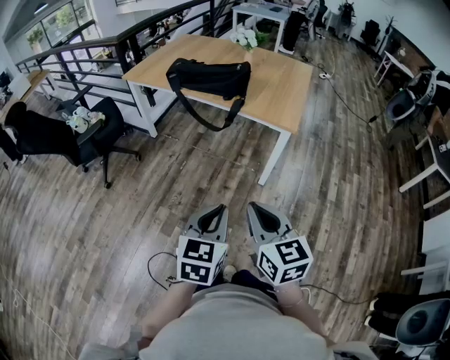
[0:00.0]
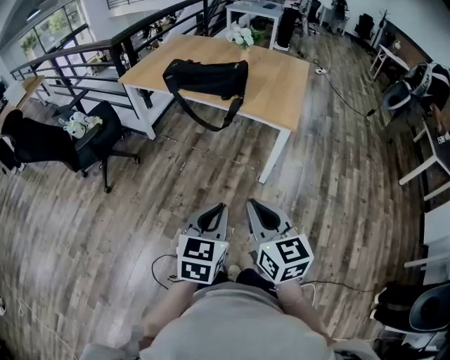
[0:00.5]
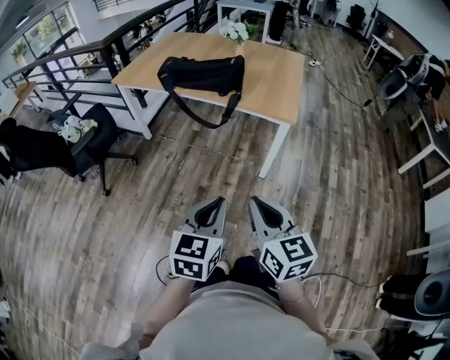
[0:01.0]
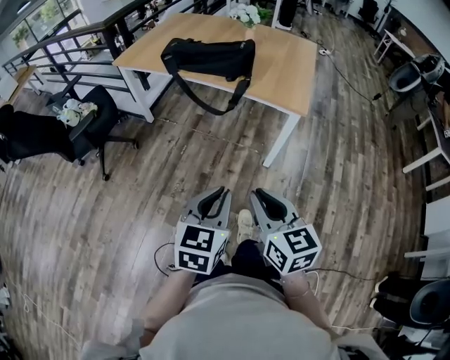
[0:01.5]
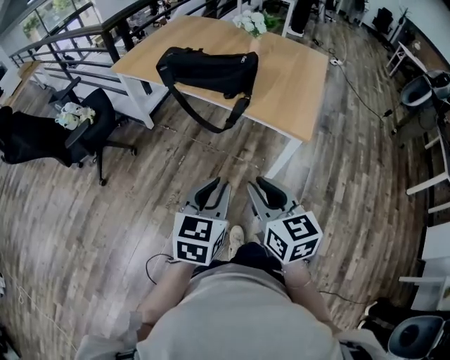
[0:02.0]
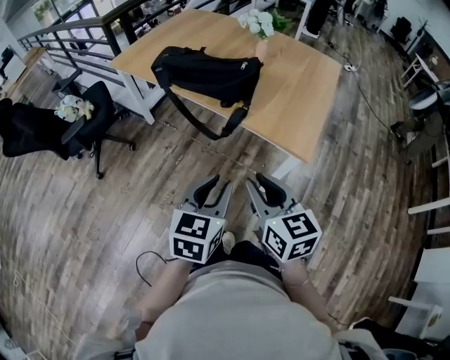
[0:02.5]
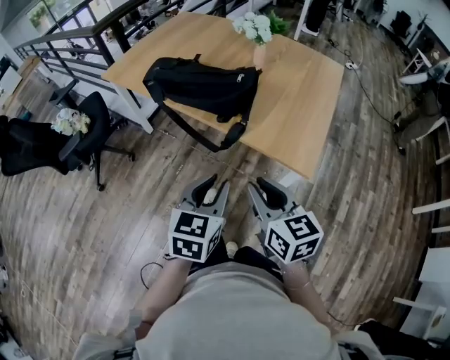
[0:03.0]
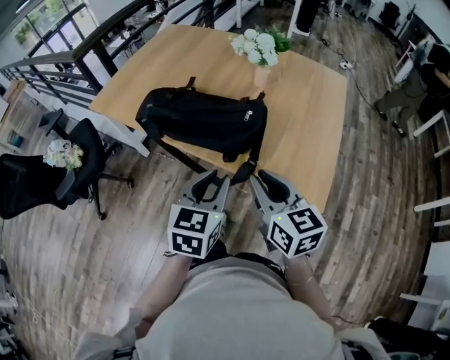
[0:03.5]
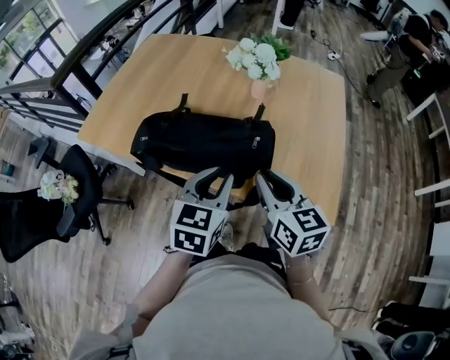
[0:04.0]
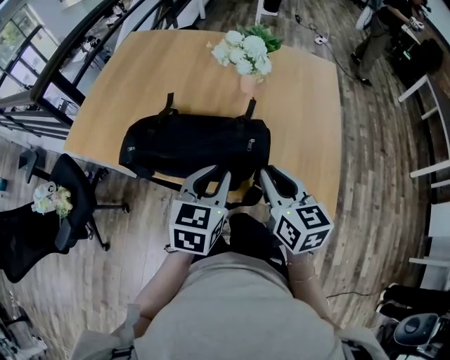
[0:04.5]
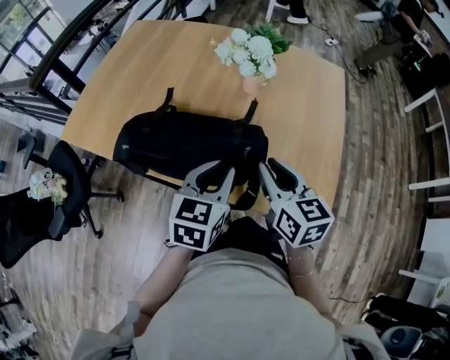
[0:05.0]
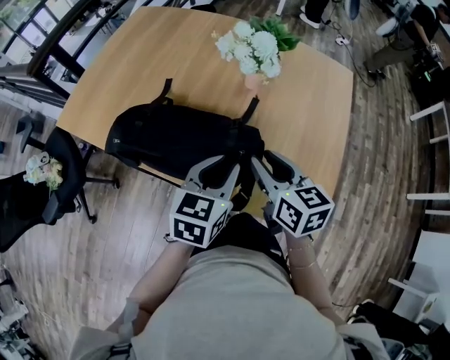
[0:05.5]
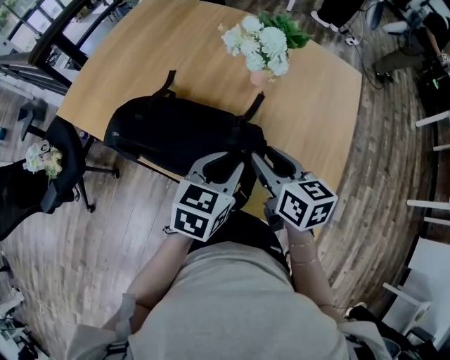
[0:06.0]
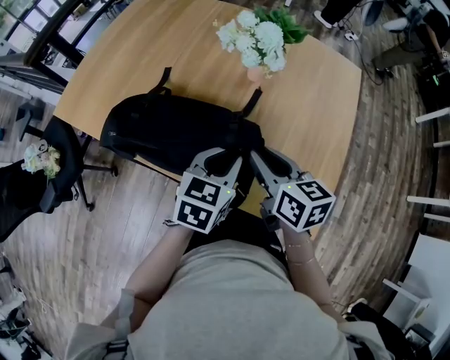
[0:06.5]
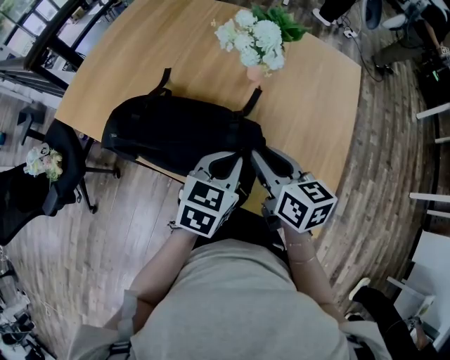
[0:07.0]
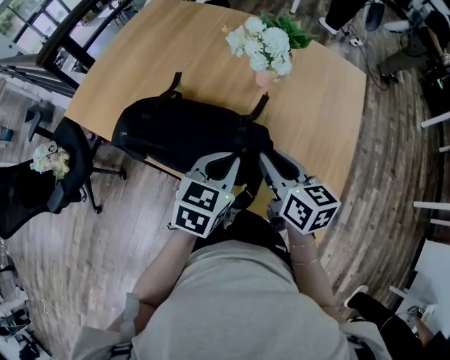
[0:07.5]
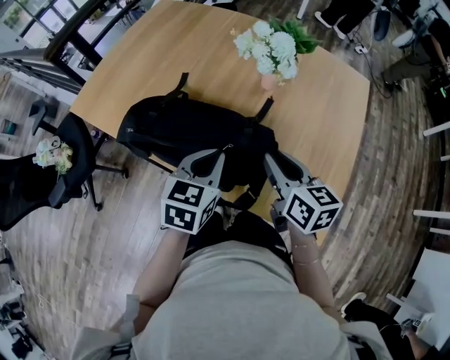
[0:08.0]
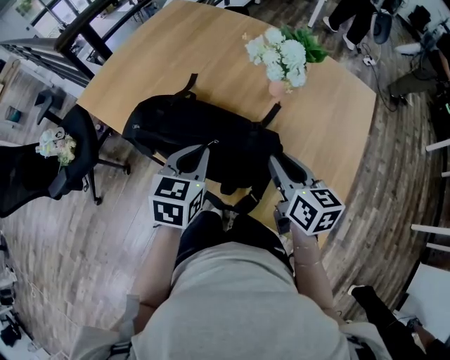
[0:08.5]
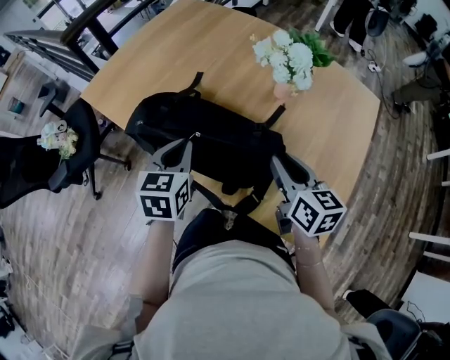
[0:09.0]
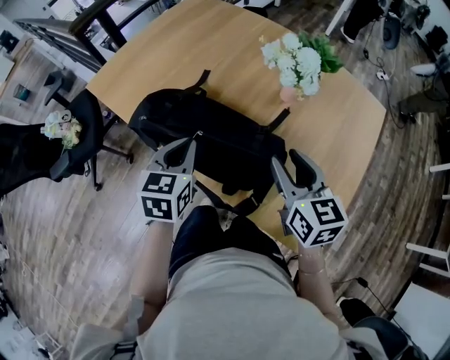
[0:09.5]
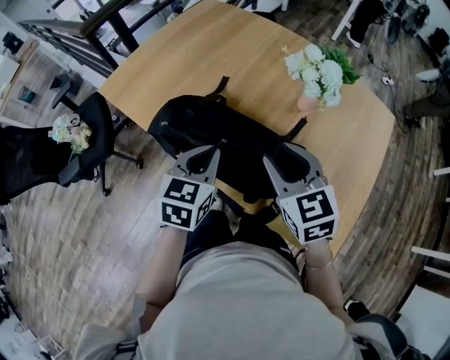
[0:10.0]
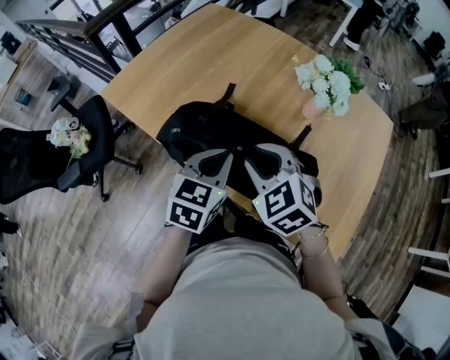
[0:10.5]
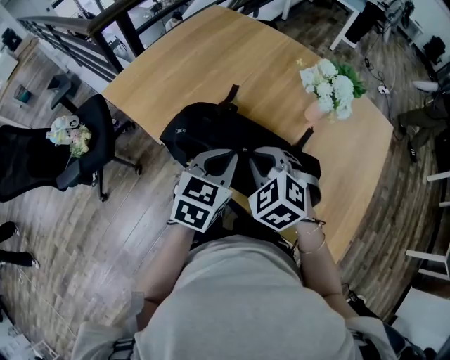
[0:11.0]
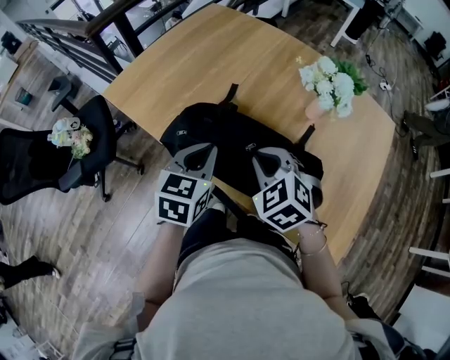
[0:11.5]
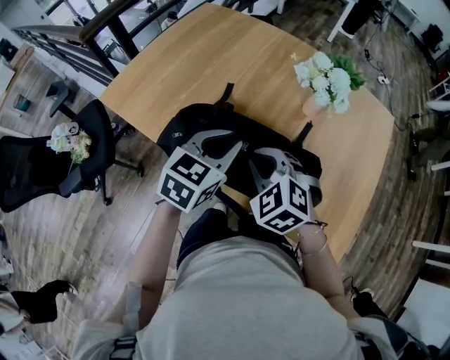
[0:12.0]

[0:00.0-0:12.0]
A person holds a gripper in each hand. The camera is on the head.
0:00.0 to 0:02.0: The grippers both shift forward by roughly 20 cm. The right gripper opens its fingers.
0:02.0 to 0:04.0: The pair of grippers is taken forward, some 40 cm.
0:04.0 to 0:06.0: The left gripper moves forward and to the right, about 10 cm. The right gripper shifts approximately 10 cm forward, and opens up.
0:06.0 to 0:08.0: The left gripper is displaced to the left by approximately 5 cm.
0:08.0 to 0:10.0: The right gripper travels to the left and upward by roughly 10 cm, and changes its angle by some 40 degrees. Meanwhile the left gripper is displaced to the left by approximately 10 cm.
0:10.0 to 0:12.0: The right gripper shifts about 10 cm to the left, rotates some 30 degrees, and closes, while the left gripper turns by about 20 degrees.

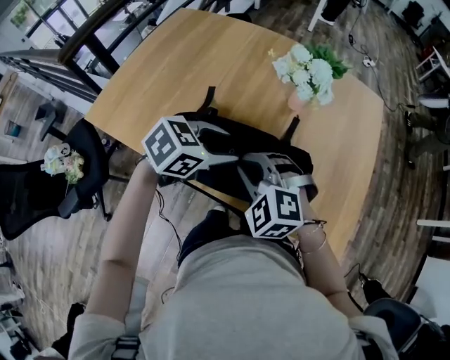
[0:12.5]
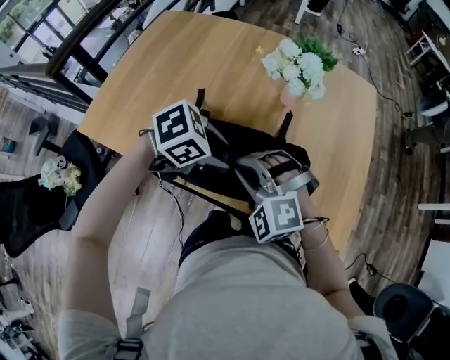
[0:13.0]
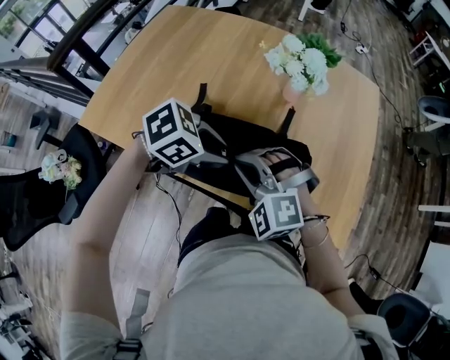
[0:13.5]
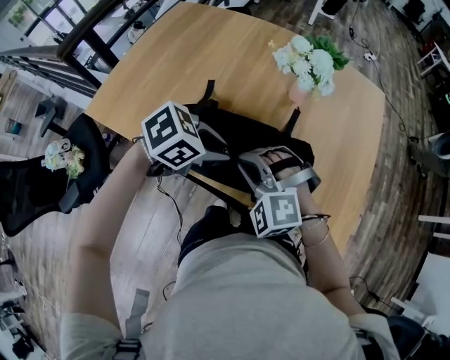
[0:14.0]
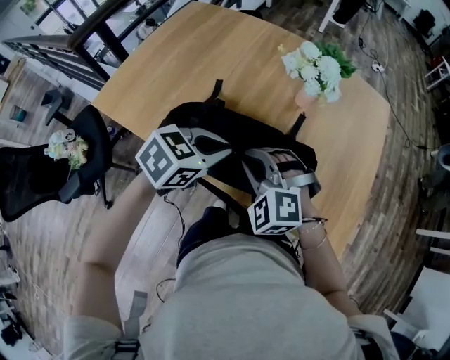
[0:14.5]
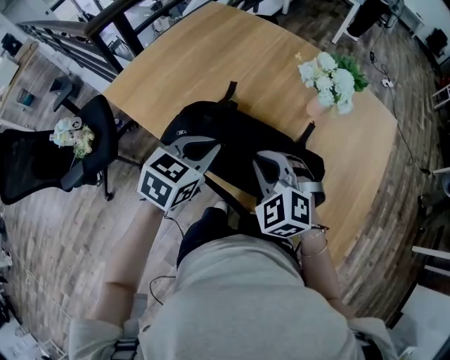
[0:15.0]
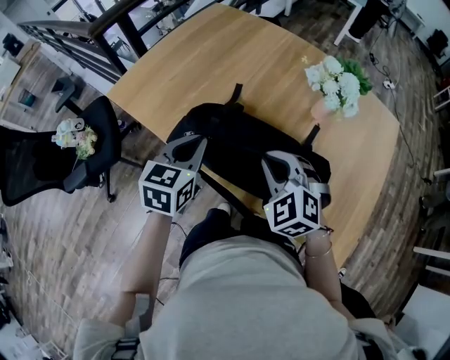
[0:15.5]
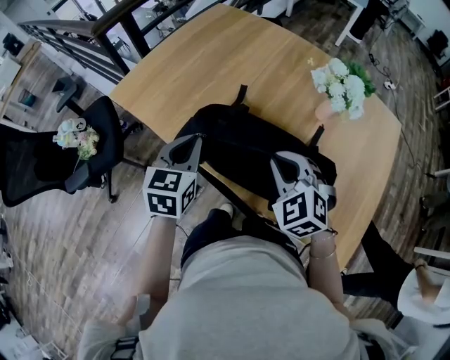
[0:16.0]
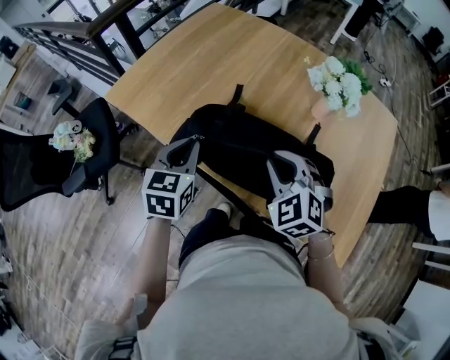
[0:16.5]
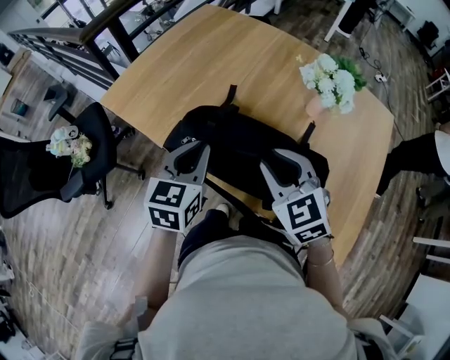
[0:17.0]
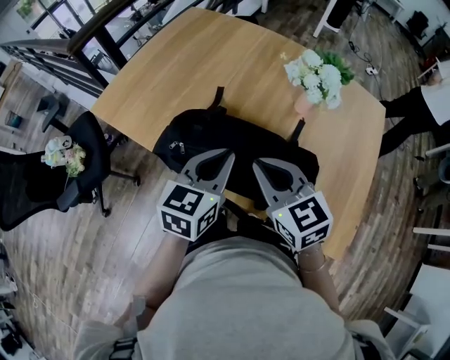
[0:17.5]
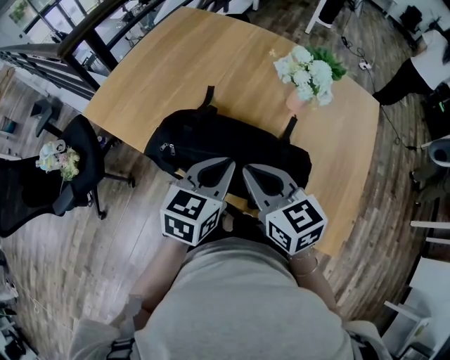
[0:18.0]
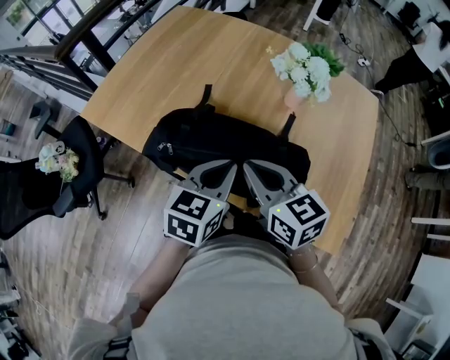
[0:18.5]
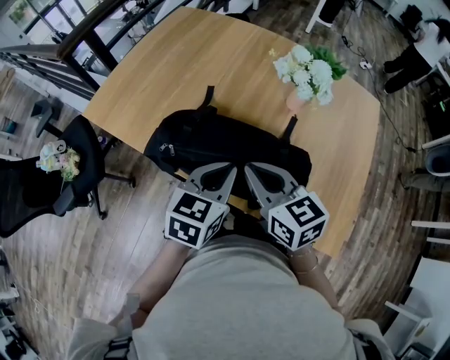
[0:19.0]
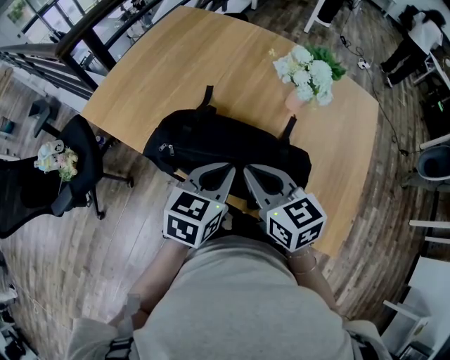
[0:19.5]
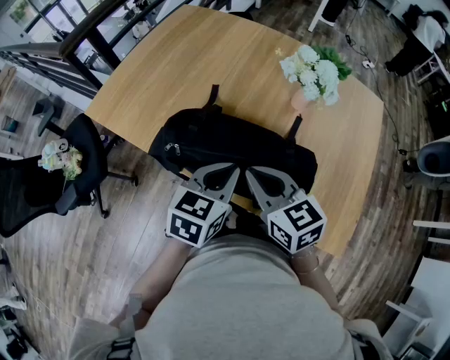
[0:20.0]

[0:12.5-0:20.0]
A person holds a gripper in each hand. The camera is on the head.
0:12.5 to 0:14.5: The left gripper closes up.
0:14.5 to 0:16.5: The left gripper moves about 15 cm, and rotates roughly 50 degrees.
0:16.5 to 0:18.0: The left gripper heads to the right, covering roughly 15 cm, and rotates about 20 degrees. The right gripper ends up about 5 cm from where it was, and twists approximately 40 degrees clockwise, seen from behind.
0:18.0 to 0:20.0: The grippers stay close to where they were, moving slightly.

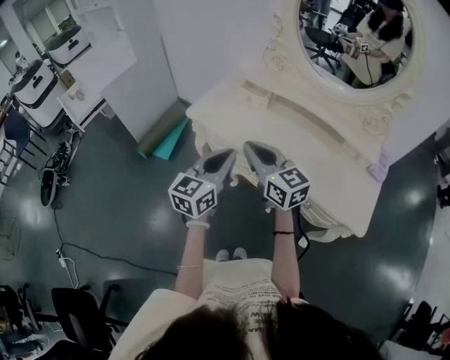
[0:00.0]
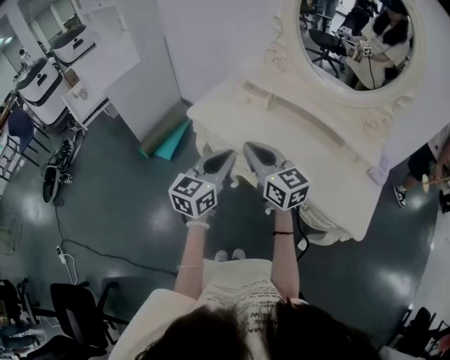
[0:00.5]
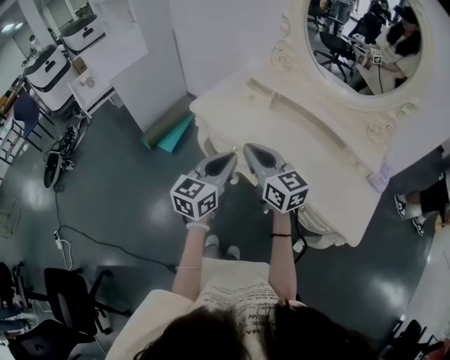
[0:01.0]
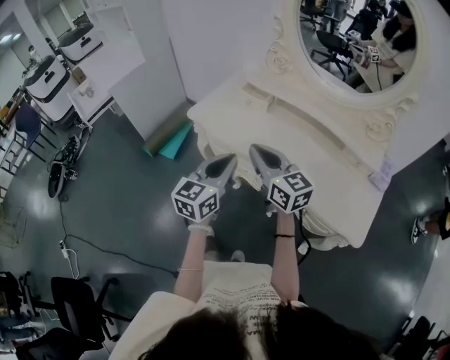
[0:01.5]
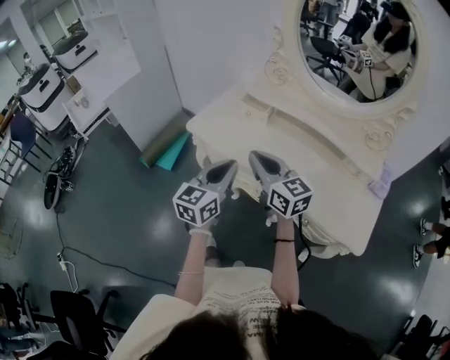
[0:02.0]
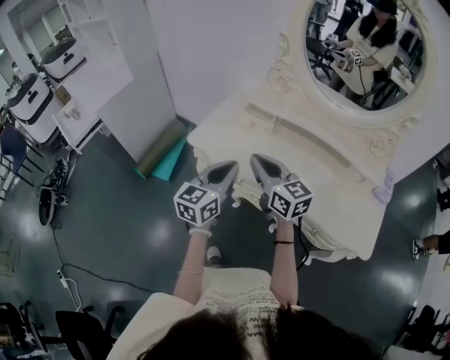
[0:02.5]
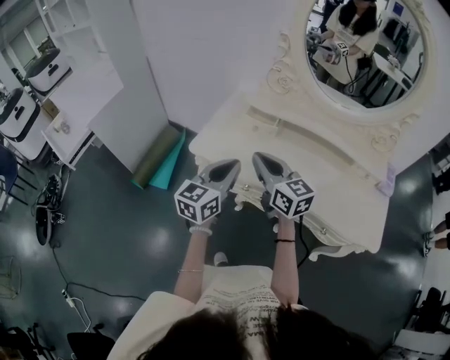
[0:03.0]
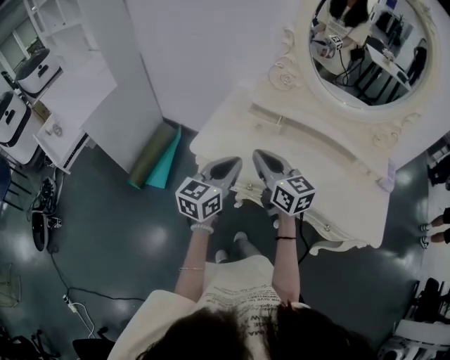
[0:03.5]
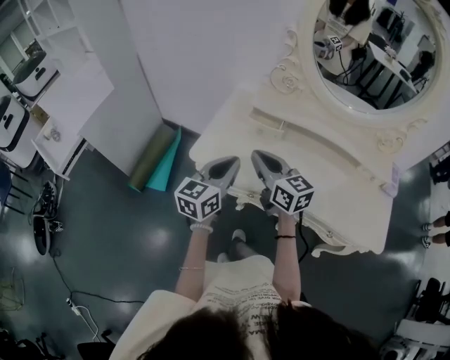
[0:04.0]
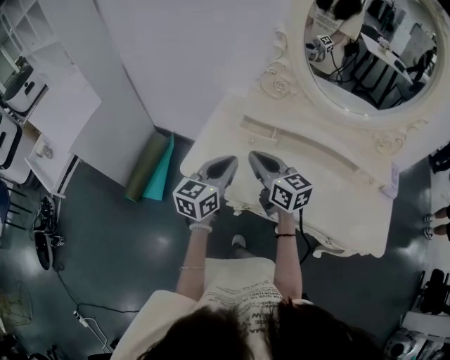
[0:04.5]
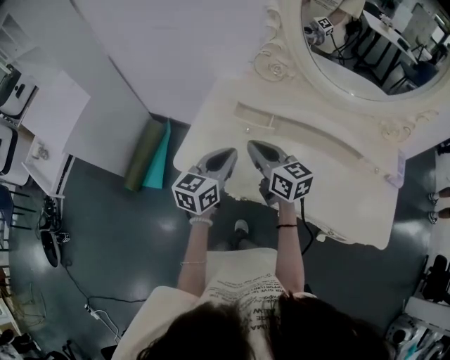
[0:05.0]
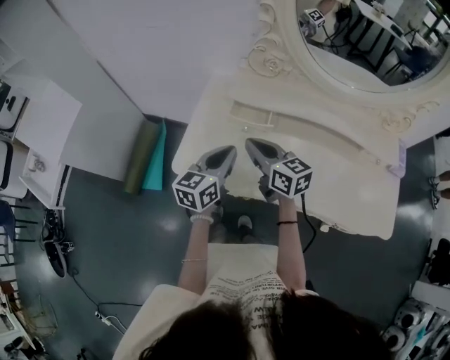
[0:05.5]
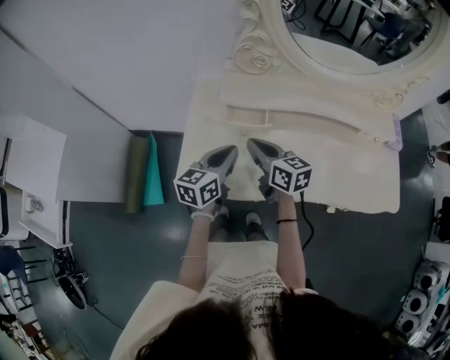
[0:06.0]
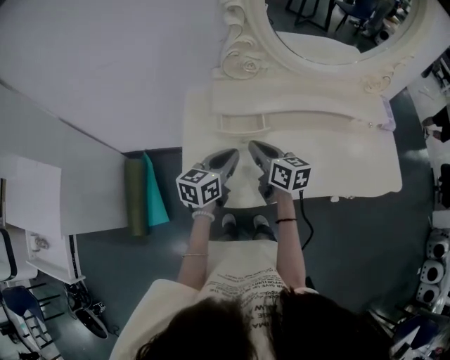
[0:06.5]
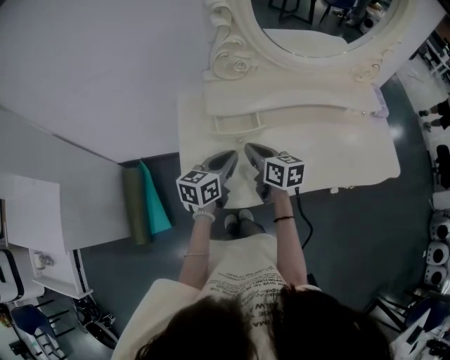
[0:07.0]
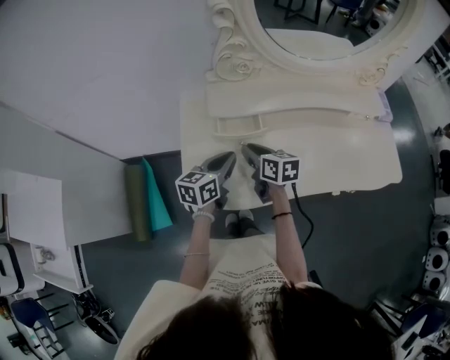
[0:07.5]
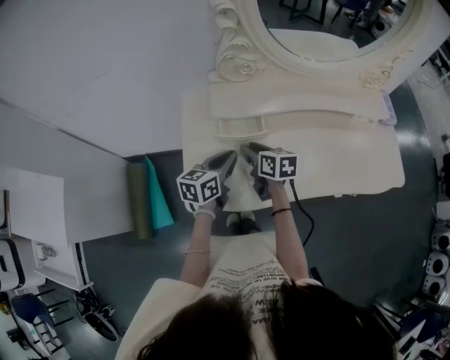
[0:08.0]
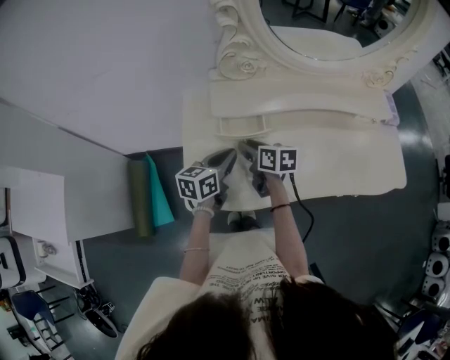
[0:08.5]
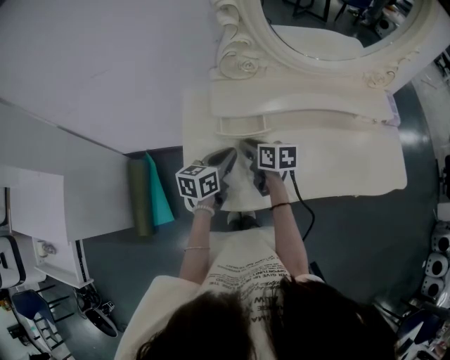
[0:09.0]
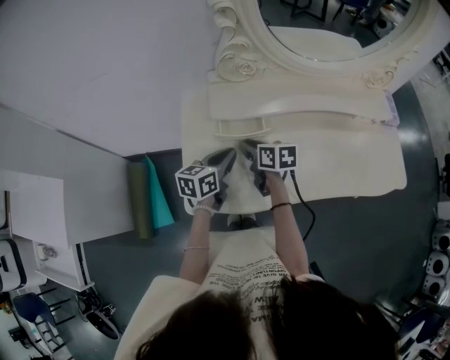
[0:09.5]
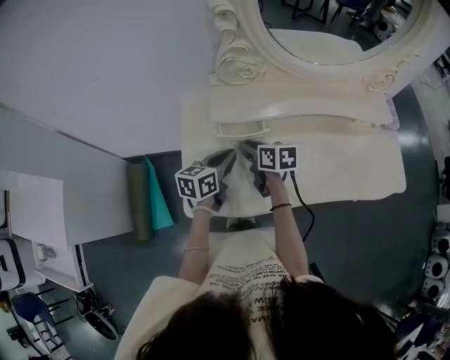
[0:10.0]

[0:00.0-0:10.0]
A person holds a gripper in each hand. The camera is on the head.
0:00.0 to 0:02.0: There are only small adjustments of the grippers.
0:02.0 to 0:04.0: Both grippers move forward and to the left, about 20 cm.
0:04.0 to 0:06.0: Both grippers move forward and downward, roughly 15 cm. The left gripper rotates approximately 20 degrees. The right gripper turns by about 20 degrees.
0:06.0 to 0:08.0: The left gripper shifts by roughly 5 cm. The right gripper travels downward by roughly 5 cm, changes its angle by approximately 20 degrees, and opens.
0:08.0 to 0:10.0: The grippers move only a little.
